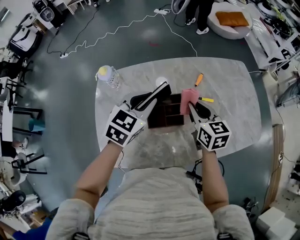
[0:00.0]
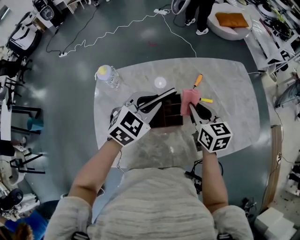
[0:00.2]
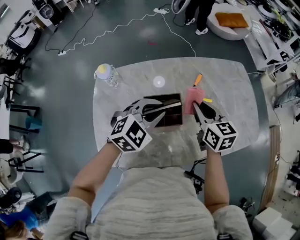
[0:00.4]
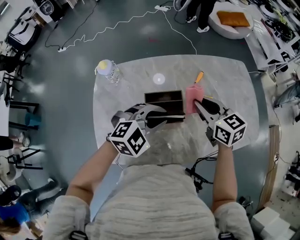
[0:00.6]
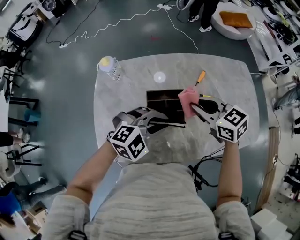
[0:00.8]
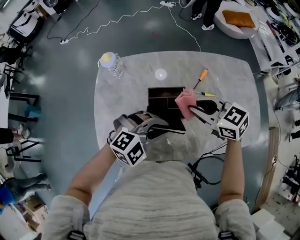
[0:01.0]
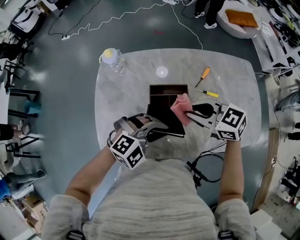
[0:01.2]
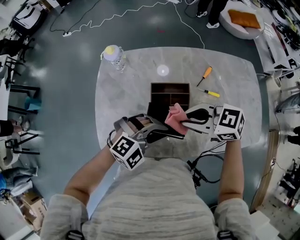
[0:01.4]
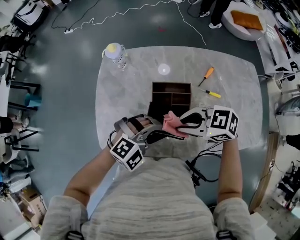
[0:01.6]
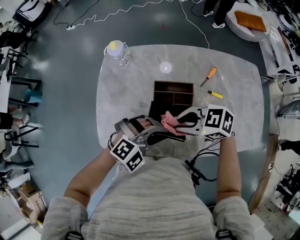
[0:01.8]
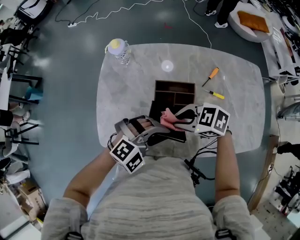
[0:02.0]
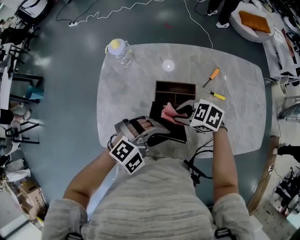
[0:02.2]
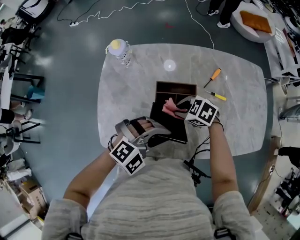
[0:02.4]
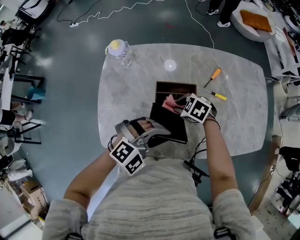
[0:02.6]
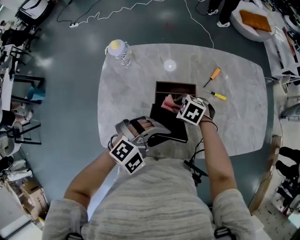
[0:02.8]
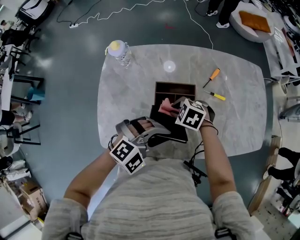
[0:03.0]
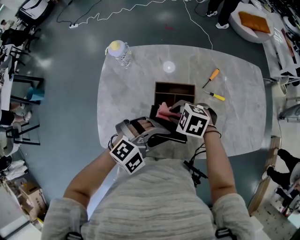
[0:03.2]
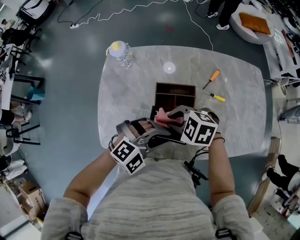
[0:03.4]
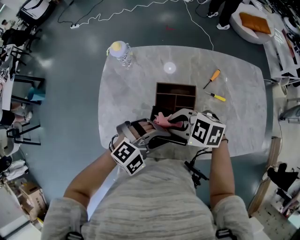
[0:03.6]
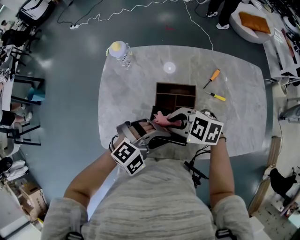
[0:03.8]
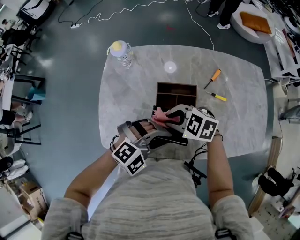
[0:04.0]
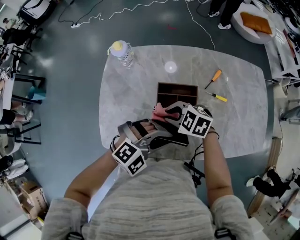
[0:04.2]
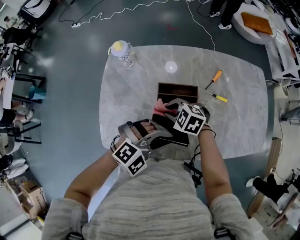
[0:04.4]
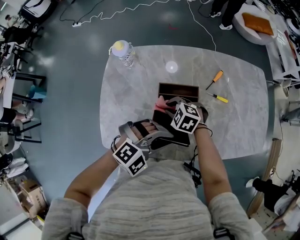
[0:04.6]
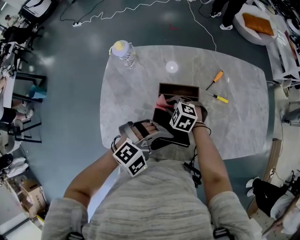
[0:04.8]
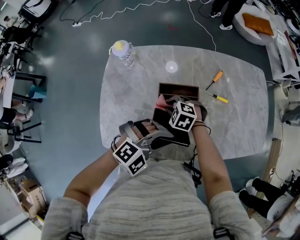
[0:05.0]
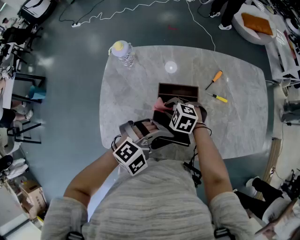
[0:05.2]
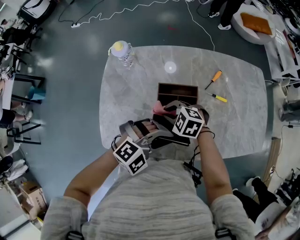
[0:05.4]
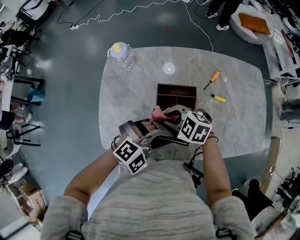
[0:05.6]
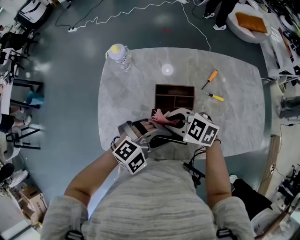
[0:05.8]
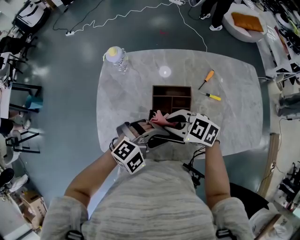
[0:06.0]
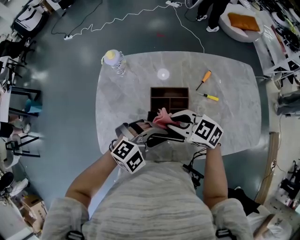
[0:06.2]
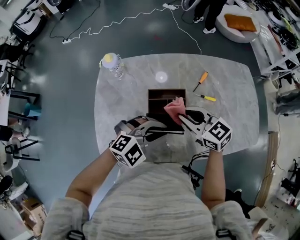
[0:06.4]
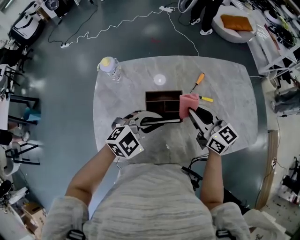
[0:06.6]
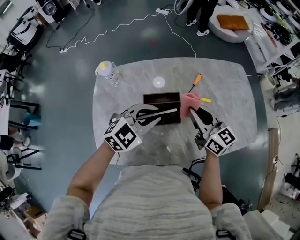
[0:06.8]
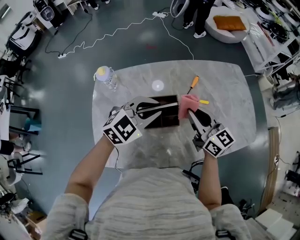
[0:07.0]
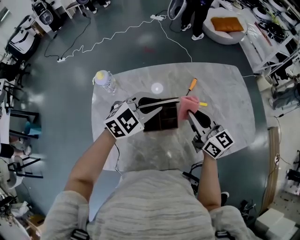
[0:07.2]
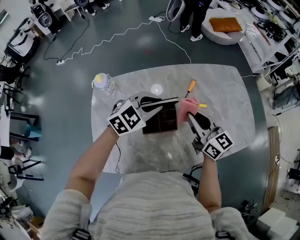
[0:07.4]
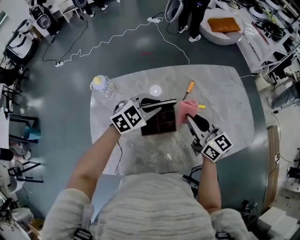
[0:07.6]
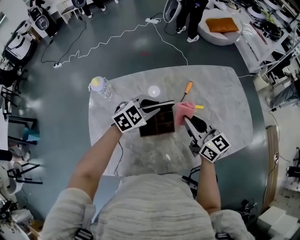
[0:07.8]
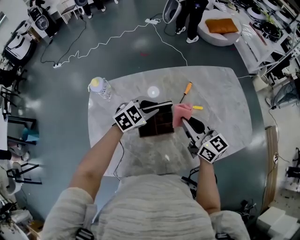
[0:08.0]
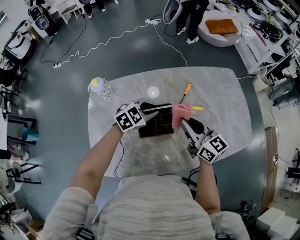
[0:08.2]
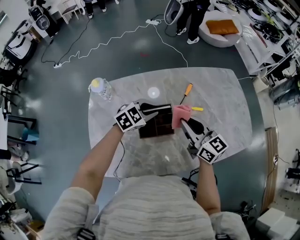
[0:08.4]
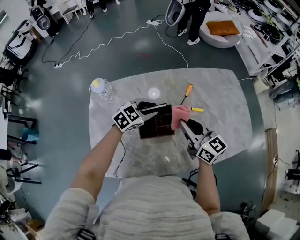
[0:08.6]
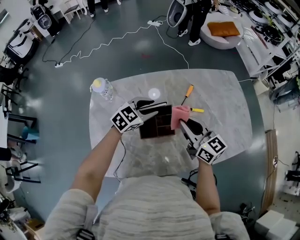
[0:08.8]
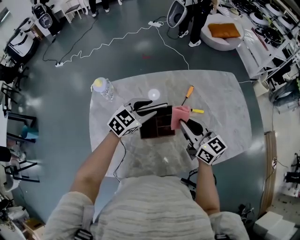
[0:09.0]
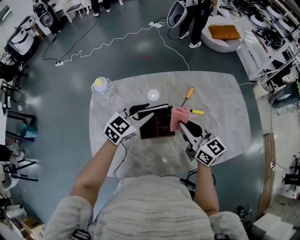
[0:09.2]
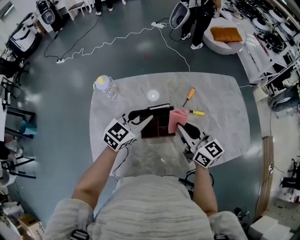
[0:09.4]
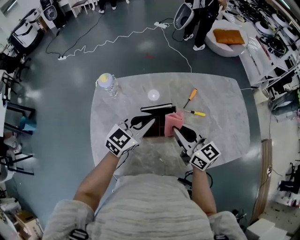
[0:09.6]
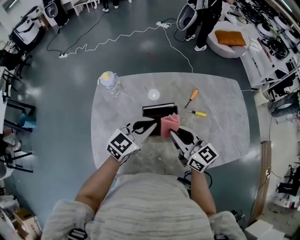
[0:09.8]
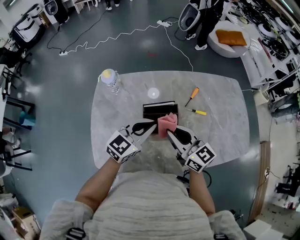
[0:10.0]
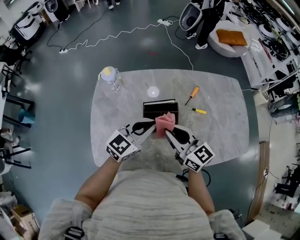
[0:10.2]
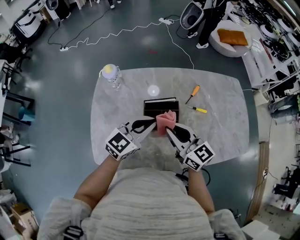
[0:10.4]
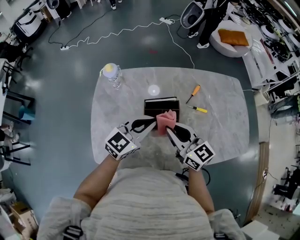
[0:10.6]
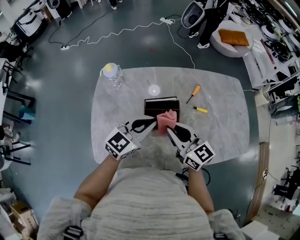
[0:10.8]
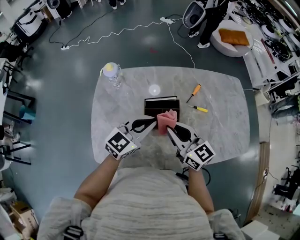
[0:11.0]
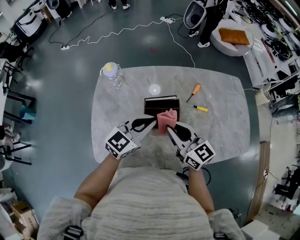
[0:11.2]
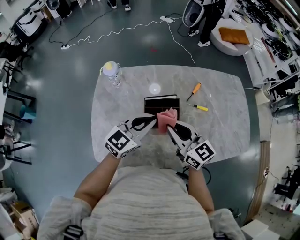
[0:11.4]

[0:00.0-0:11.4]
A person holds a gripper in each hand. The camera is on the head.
0:00.0 to 0:01.4: The right gripper shifts by some 15 cm, and rotates roughly 60 degrees; the left gripper ends up approximately 20 cm from where it was, and rotates around the line of its fingers by approximately 40 degrees, clockwise from behind.
0:01.4 to 0:02.8: The right gripper shifts some 20 cm downward, and points its fingers roughly 40 degrees further downward.
0:02.8 to 0:04.2: The right gripper goes some 5 cm upward.
0:04.2 to 0:05.6: The right gripper moves approximately 10 cm downward and comes back.
0:05.6 to 0:07.2: The right gripper moves some 20 cm, and tilts its fingers approximately 50 degrees upward. The left gripper shifts by approximately 15 cm.
0:07.2 to 0:08.6: The left gripper travels downward by some 10 cm.
0:08.6 to 0:10.0: The left gripper travels backward and upward by roughly 15 cm, turns by some 30 degrees, and closes up, while the right gripper travels to the left and backward by about 10 cm.
0:10.0 to 0:11.4: Neither gripper changes place.

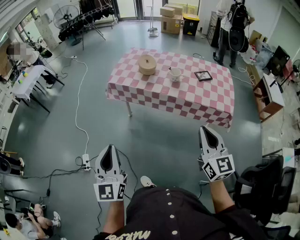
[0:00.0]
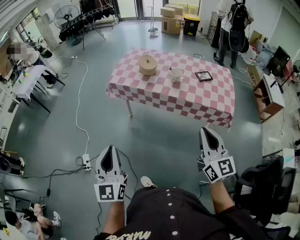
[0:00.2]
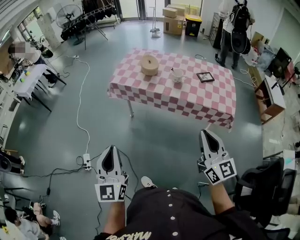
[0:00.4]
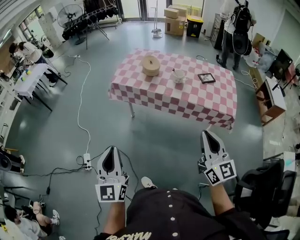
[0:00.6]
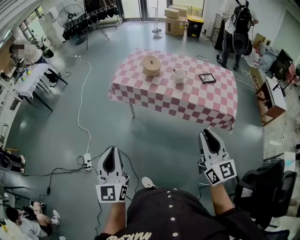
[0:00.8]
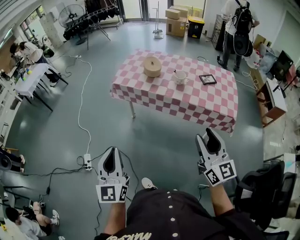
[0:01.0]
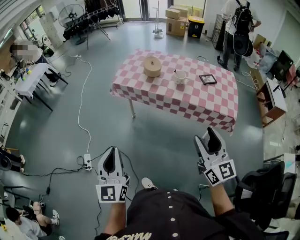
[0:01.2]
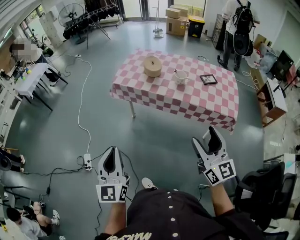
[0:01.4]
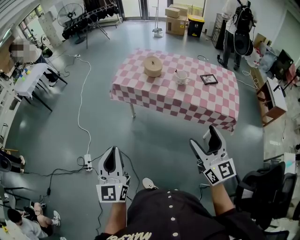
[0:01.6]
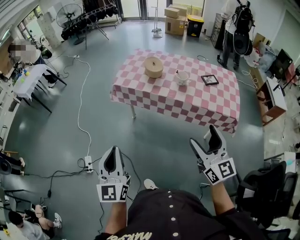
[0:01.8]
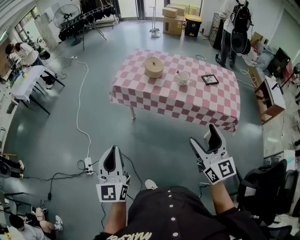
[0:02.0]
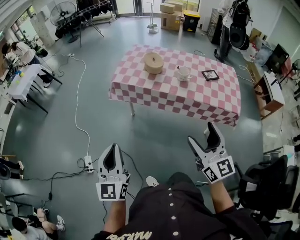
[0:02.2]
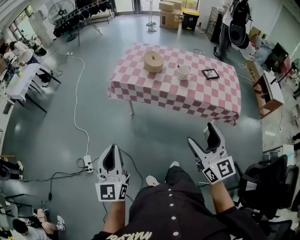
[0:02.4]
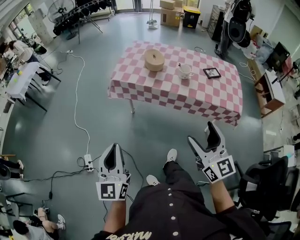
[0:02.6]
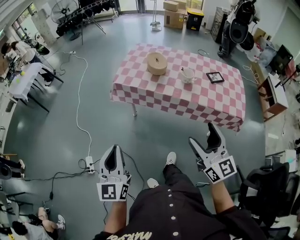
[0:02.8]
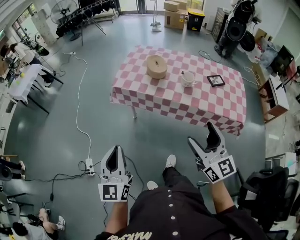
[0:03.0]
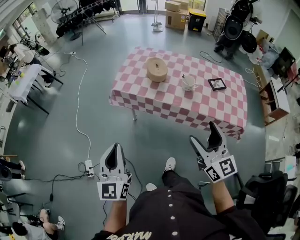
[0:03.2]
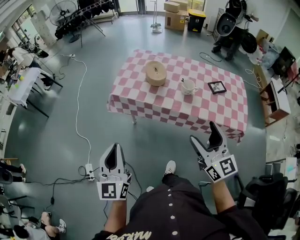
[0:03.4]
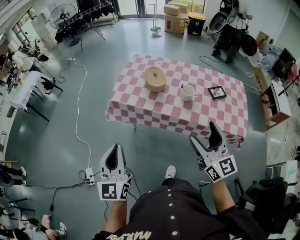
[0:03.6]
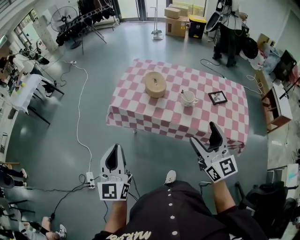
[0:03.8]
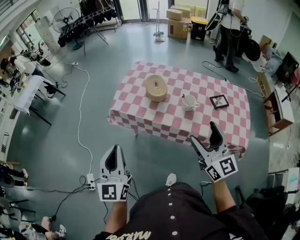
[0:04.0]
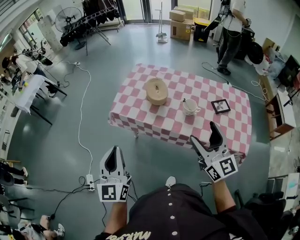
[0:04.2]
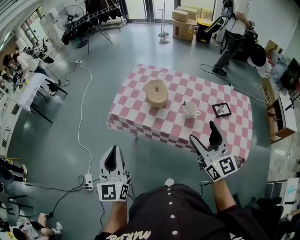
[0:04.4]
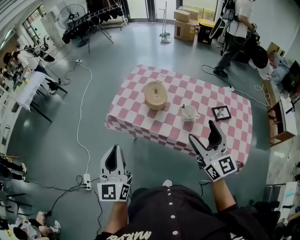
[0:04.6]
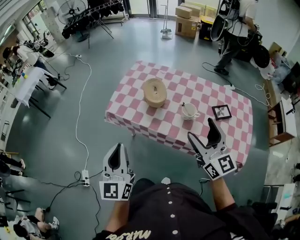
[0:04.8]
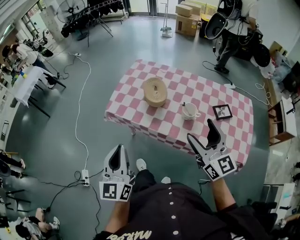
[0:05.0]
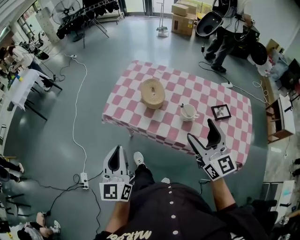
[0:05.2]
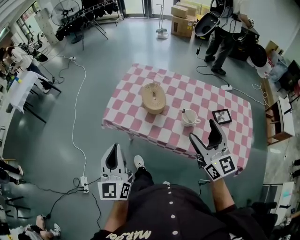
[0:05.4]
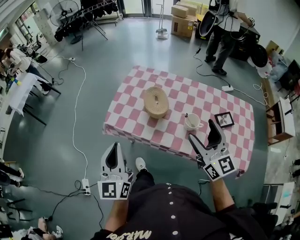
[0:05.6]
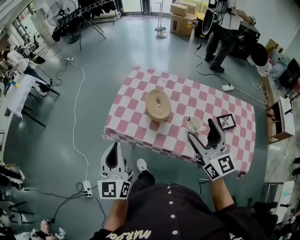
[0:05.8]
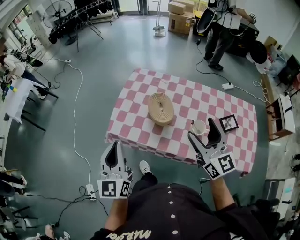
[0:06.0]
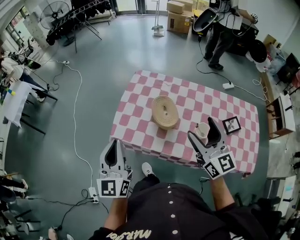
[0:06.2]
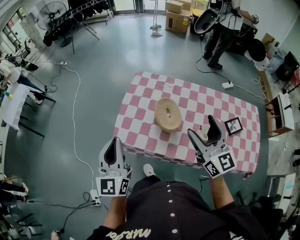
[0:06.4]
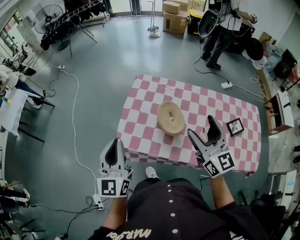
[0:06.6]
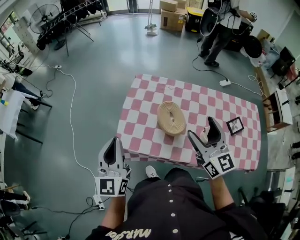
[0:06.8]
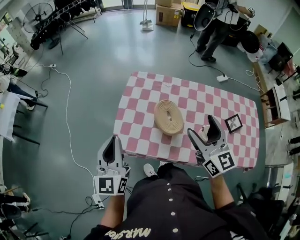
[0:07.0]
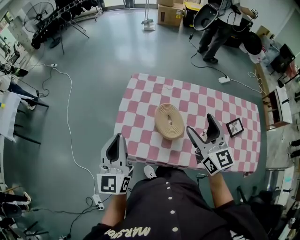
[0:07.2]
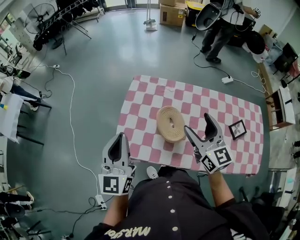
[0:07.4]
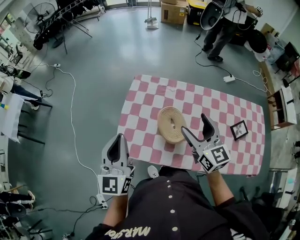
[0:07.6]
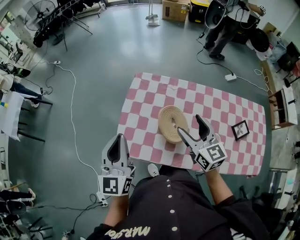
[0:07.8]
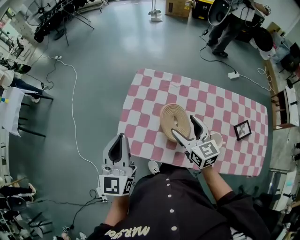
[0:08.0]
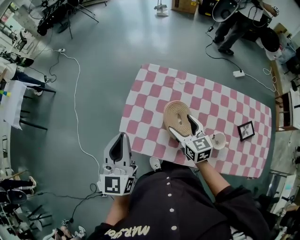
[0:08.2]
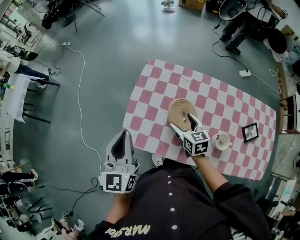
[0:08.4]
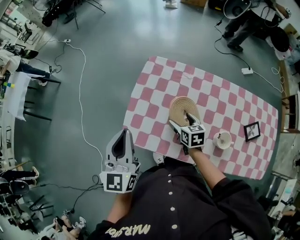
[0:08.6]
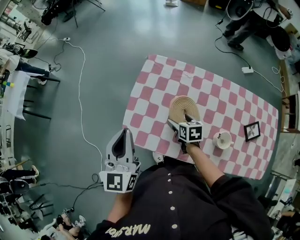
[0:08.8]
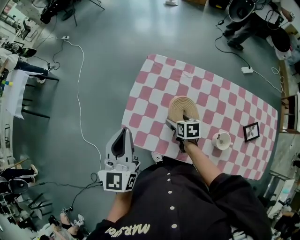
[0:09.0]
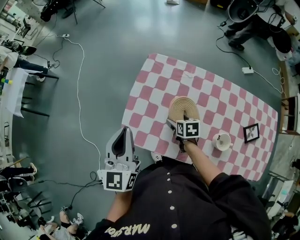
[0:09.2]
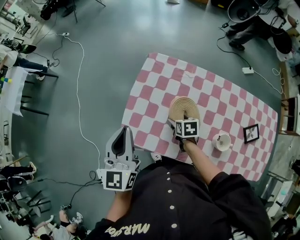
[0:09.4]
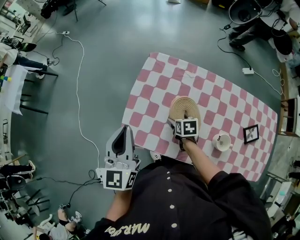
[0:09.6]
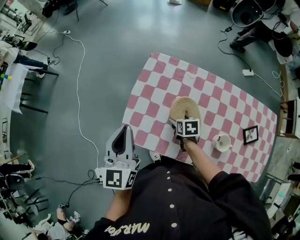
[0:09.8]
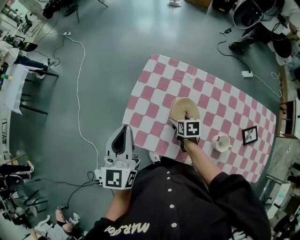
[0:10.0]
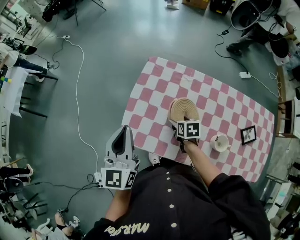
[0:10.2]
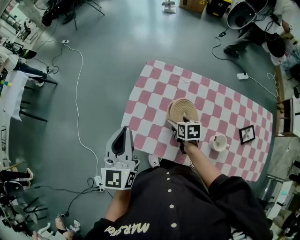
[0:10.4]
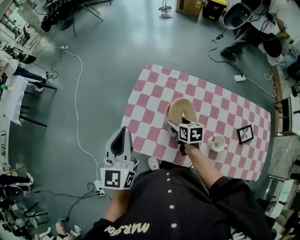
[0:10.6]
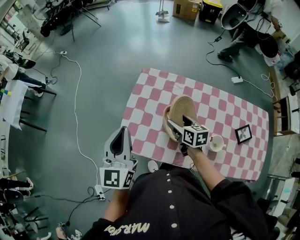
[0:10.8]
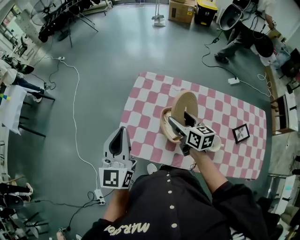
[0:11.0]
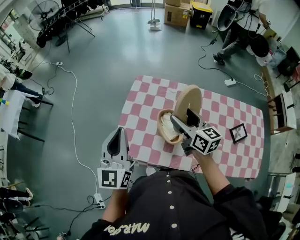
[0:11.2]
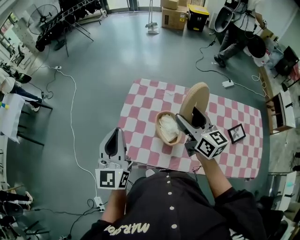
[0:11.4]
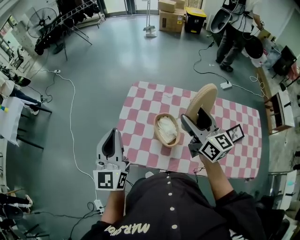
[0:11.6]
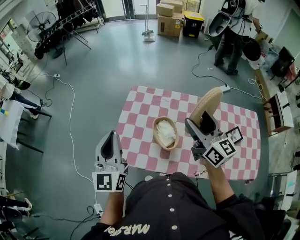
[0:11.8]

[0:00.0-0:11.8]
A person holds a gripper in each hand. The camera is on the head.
0:00.0 to 0:01.4: The right gripper opens its fingers.
0:01.4 to 0:03.0: The left gripper shifts about 10 cm forward. Meanwhile the right gripper goes some 15 cm forward and to the left.
0:03.0 to 0:04.4: Both grippers move forward and to the right, roughly 20 cm.
0:04.4 to 0:06.0: The two grippers go roughly 20 cm forward.
0:06.0 to 0:07.4: The two grippers go some 15 cm forward.
0:07.4 to 0:08.8: The right gripper is displaced downward by about 30 cm, and tilts its fingers roughly 50 degrees downward. The left gripper moves approximately 5 cm.
0:08.8 to 0:10.4: There are only small adjustments of the grippers.
0:10.4 to 0:11.8: The left gripper moves upward, approximately 5 cm. The right gripper heads upward, covering approximately 35 cm, and tilts its fingers roughly 60 degrees upward.

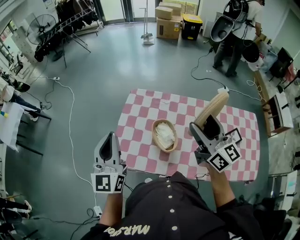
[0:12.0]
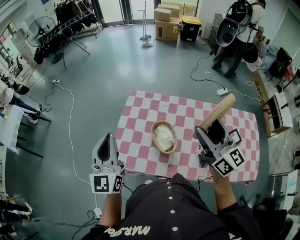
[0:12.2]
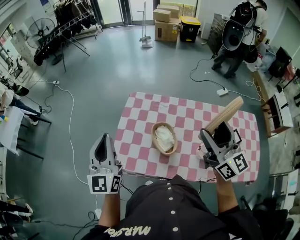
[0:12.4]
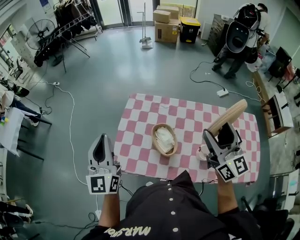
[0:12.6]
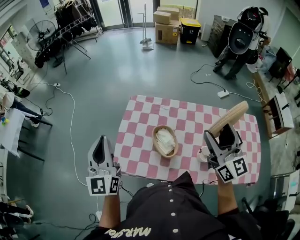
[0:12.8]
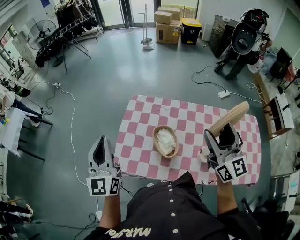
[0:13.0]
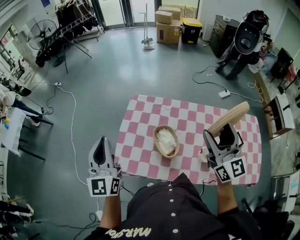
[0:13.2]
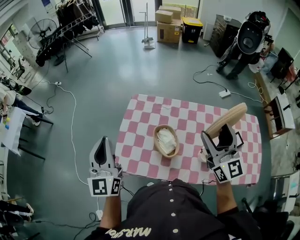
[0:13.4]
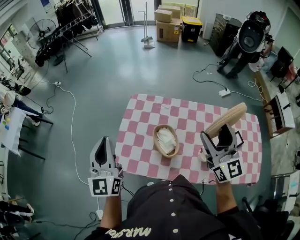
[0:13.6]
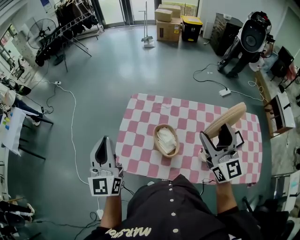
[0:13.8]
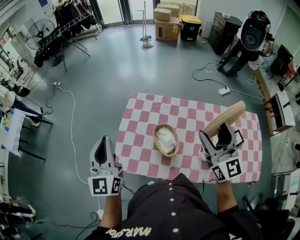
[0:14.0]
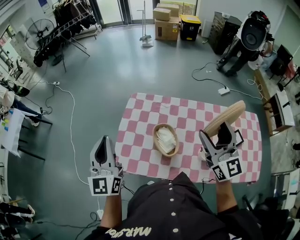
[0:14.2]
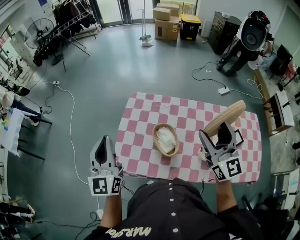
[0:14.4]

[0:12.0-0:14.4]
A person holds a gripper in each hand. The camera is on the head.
0:12.0 to 0:13.2: The right gripper moves roughly 5 cm.
0:13.2 to 0:14.4: The grippers move only a little.
